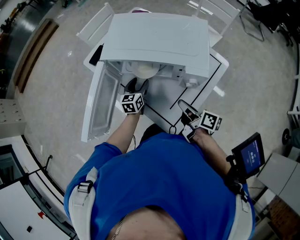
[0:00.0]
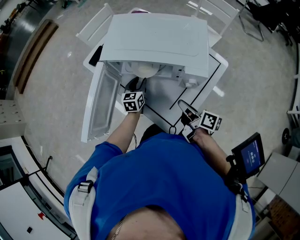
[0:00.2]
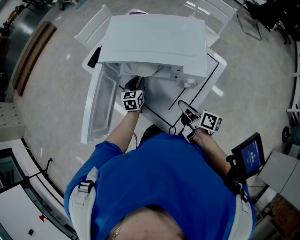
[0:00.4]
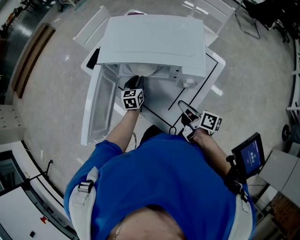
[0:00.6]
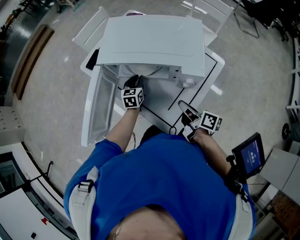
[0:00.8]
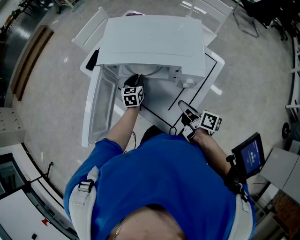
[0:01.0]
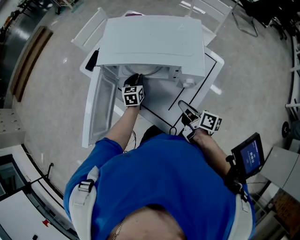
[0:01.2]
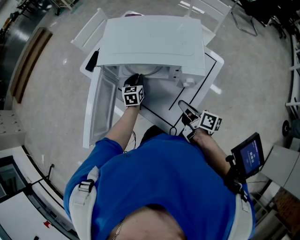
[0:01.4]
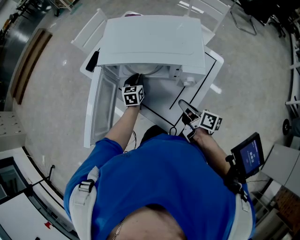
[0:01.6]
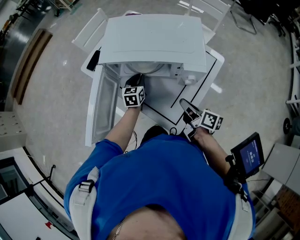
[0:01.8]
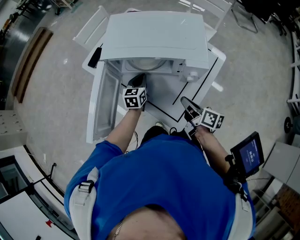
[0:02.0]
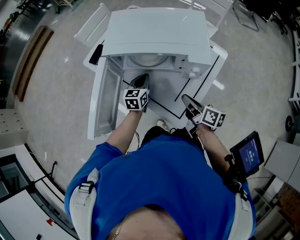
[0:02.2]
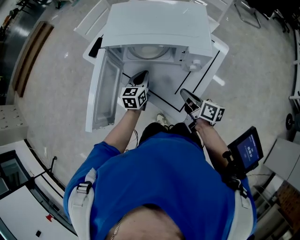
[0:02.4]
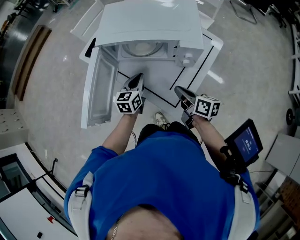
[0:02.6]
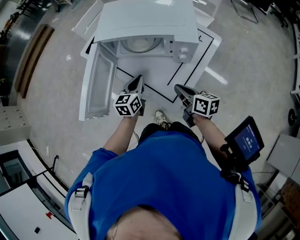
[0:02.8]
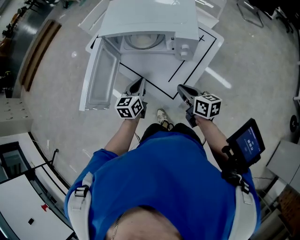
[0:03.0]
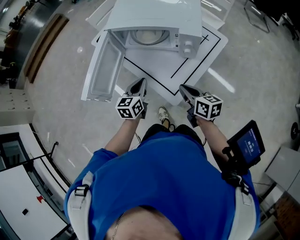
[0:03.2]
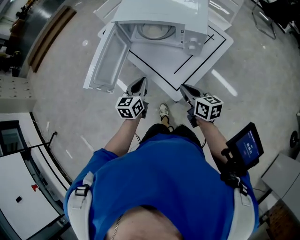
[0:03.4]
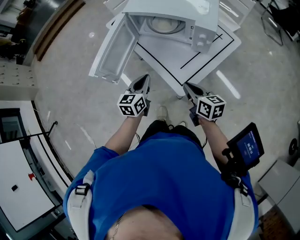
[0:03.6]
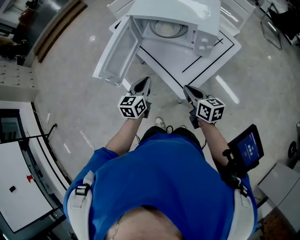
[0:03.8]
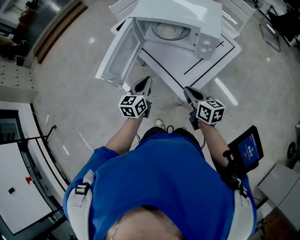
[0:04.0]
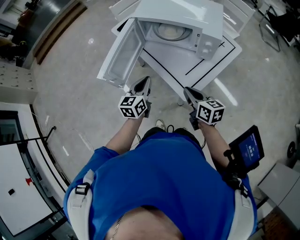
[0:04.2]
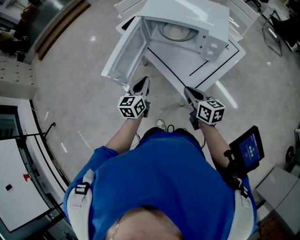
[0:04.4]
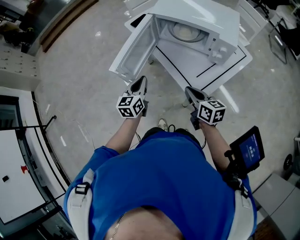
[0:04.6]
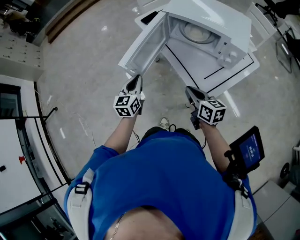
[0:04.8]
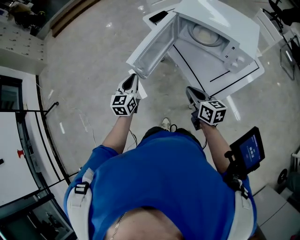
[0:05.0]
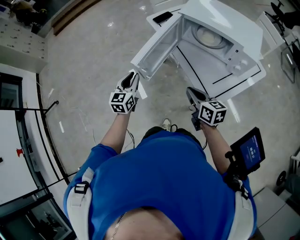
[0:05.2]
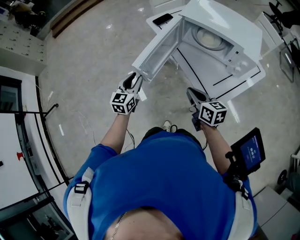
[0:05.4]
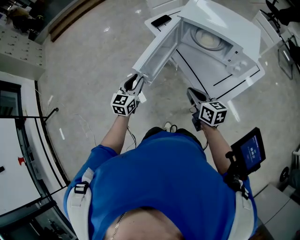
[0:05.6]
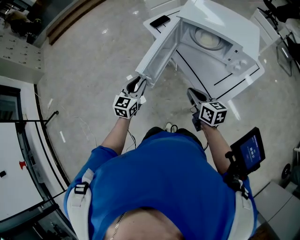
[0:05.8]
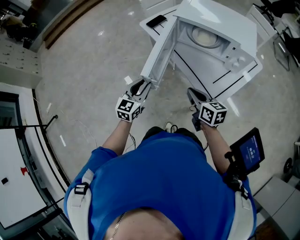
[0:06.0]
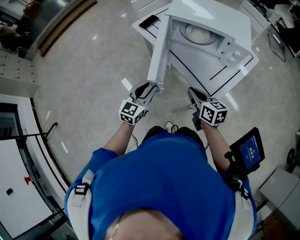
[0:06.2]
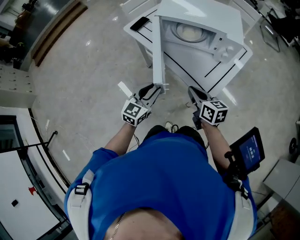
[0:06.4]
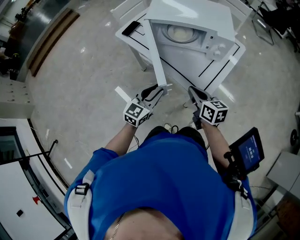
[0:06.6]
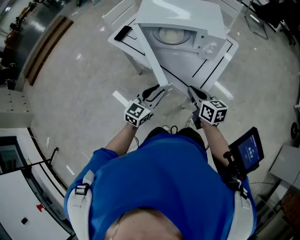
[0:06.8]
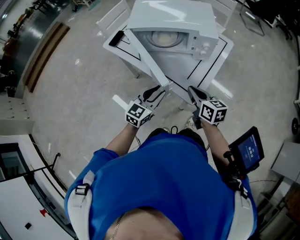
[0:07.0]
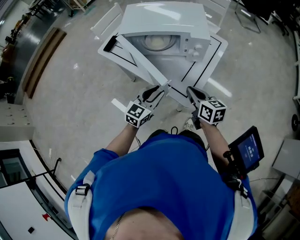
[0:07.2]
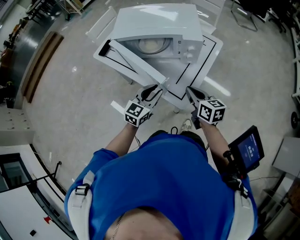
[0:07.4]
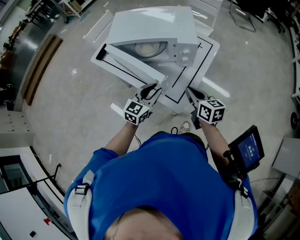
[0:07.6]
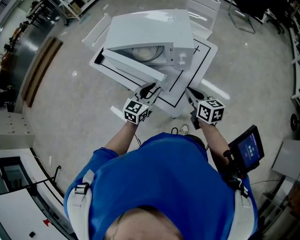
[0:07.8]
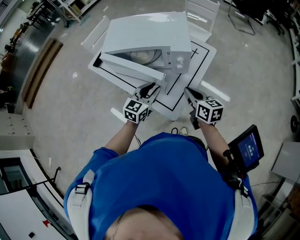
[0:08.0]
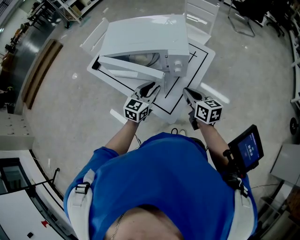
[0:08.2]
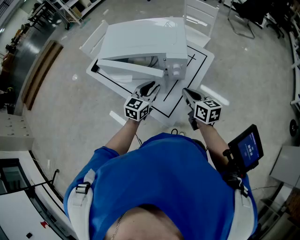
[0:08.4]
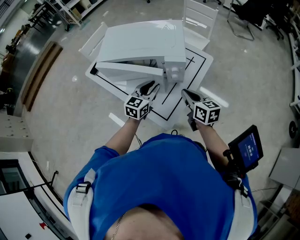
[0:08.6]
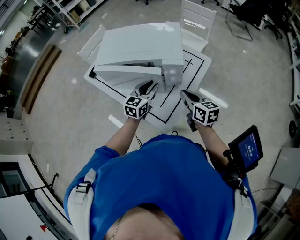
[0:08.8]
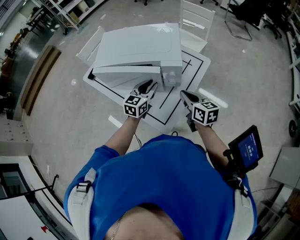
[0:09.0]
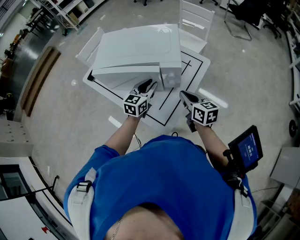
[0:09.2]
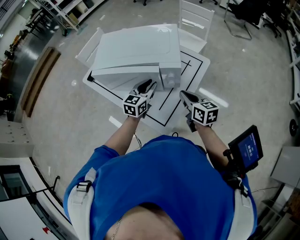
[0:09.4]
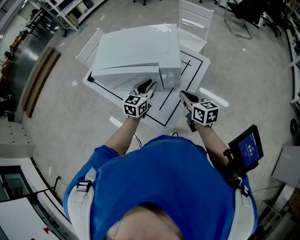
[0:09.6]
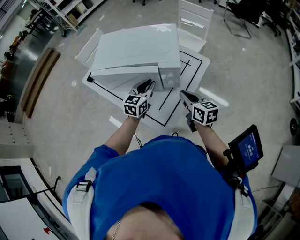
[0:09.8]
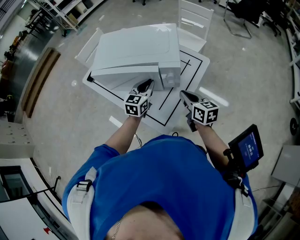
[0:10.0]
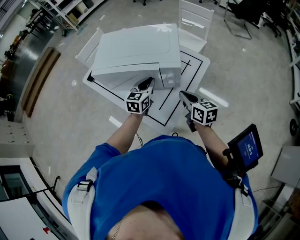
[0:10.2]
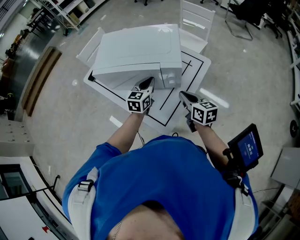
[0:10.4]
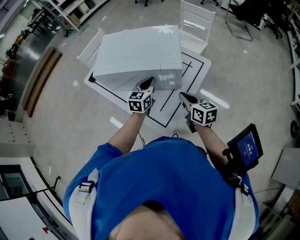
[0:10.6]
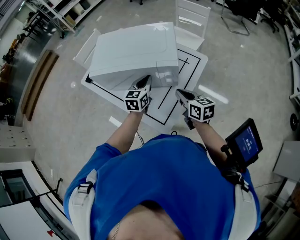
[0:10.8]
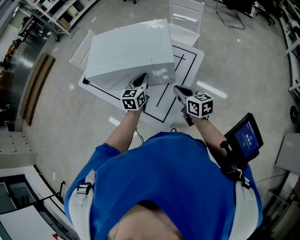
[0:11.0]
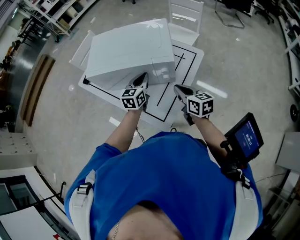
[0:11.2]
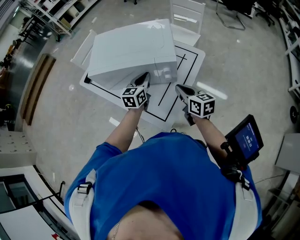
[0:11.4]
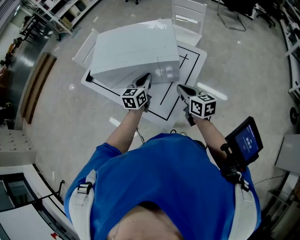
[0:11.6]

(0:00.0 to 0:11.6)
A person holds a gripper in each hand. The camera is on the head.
0:00.0 - 0:01.4: The left gripper closes its fingers.
0:01.4 - 0:02.8: The right gripper moves backward, some 5 cm, and turns by some 20 degrees; the left gripper shifts some 15 cm backward.
0:02.8 - 0:04.4: Both grippers move to the left and backward, some 15 cm.
0:04.4 - 0:05.8: The grippers both shift to the left by some 15 cm. The left gripper opens up.
0:05.8 - 0:07.2: The left gripper ends up roughly 25 cm from where it was, and turns by roughly 40 degrees. The right gripper changes place by approximately 15 cm, and changes its angle by roughly 20 degrees.
0:07.2 - 0:08.8: The two grippers go approximately 15 cm forward and to the right.
0:08.8 - 0:10.2: The left gripper travels forward by about 5 cm.
0:10.2 - 0:11.6: The grippers move only a little.

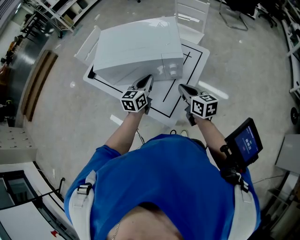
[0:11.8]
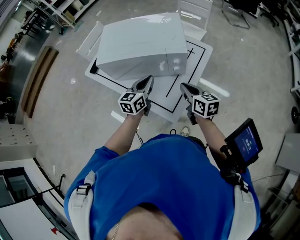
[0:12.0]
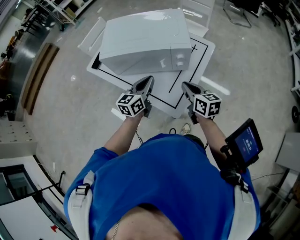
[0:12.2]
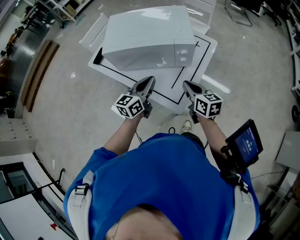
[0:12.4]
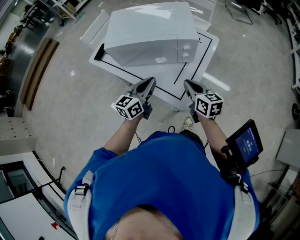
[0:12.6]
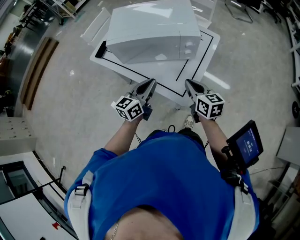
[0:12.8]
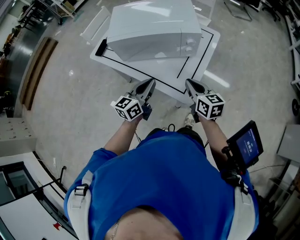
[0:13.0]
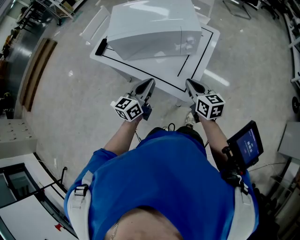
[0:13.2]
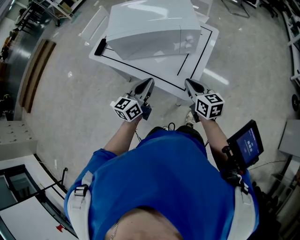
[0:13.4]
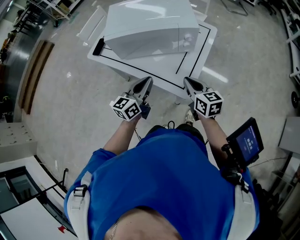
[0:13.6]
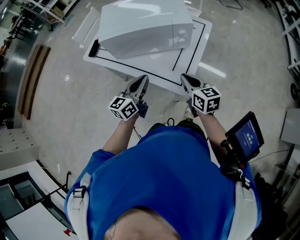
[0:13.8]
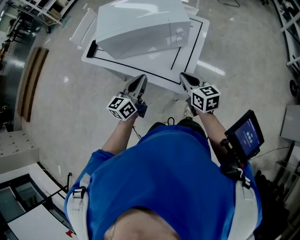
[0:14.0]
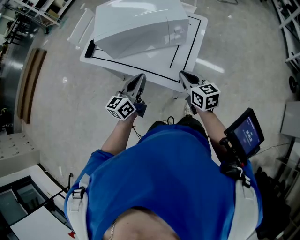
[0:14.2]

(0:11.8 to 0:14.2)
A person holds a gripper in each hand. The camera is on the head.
0:11.8 - 0:13.0: Both grippers travel together backward and to the left, approximately 15 cm.
0:13.0 - 0:14.2: The grippers stay close to where they were, moving slightly.

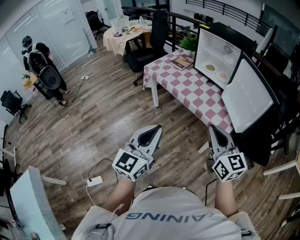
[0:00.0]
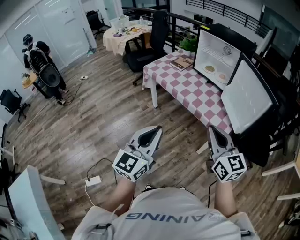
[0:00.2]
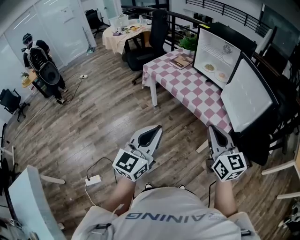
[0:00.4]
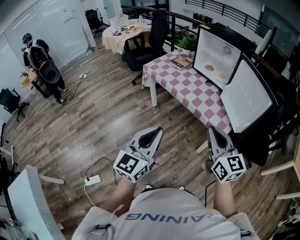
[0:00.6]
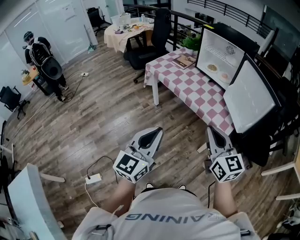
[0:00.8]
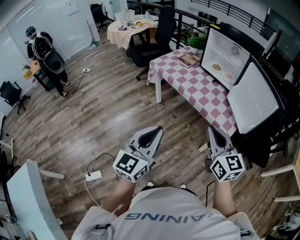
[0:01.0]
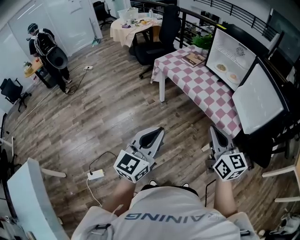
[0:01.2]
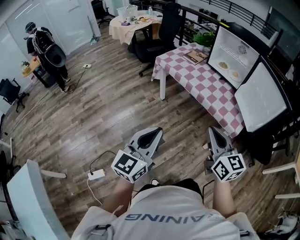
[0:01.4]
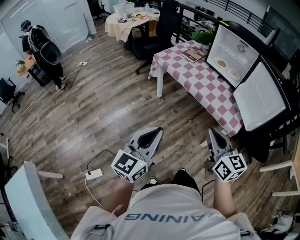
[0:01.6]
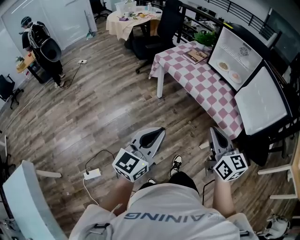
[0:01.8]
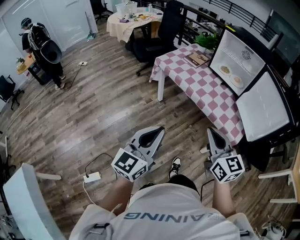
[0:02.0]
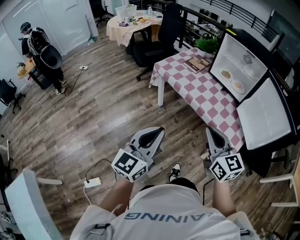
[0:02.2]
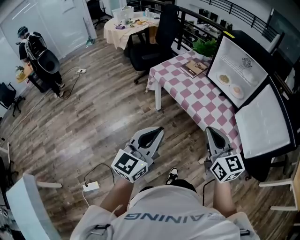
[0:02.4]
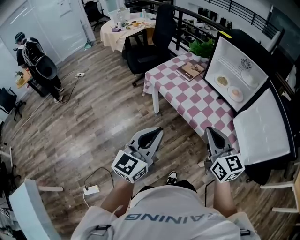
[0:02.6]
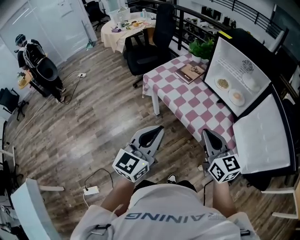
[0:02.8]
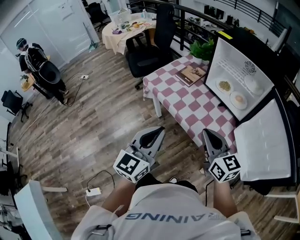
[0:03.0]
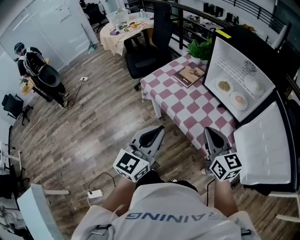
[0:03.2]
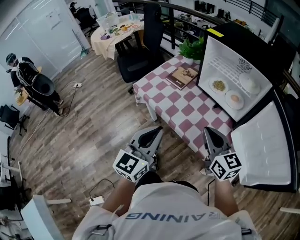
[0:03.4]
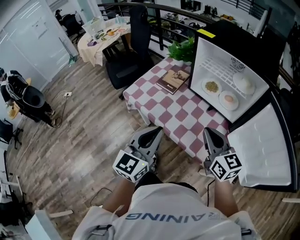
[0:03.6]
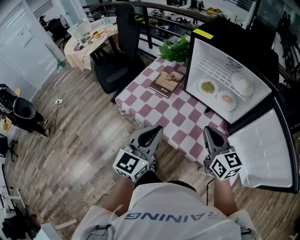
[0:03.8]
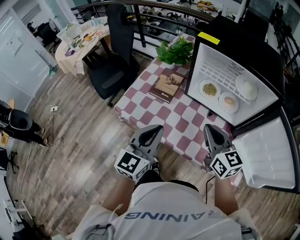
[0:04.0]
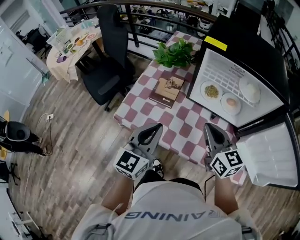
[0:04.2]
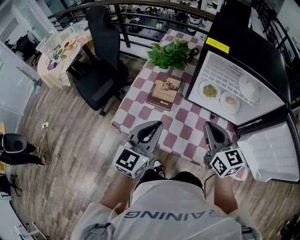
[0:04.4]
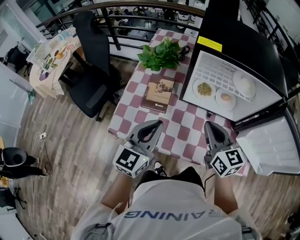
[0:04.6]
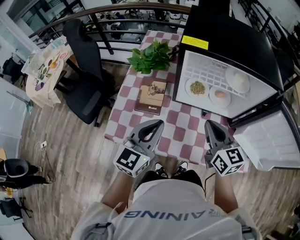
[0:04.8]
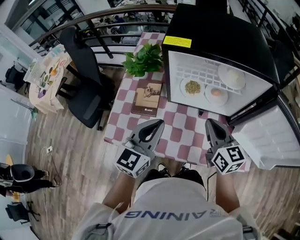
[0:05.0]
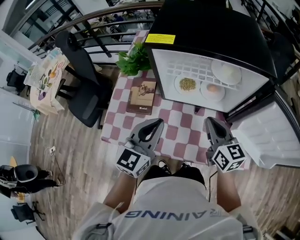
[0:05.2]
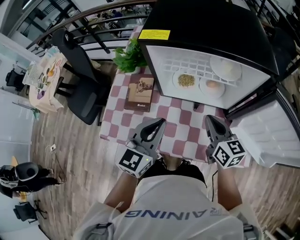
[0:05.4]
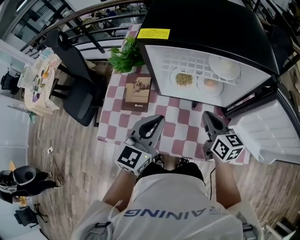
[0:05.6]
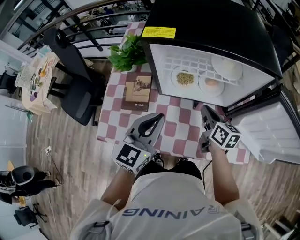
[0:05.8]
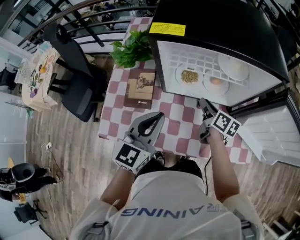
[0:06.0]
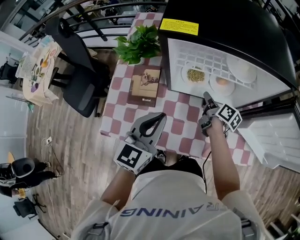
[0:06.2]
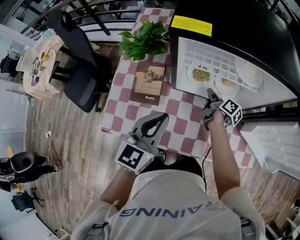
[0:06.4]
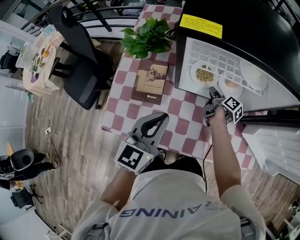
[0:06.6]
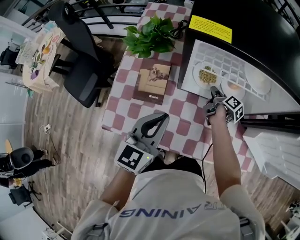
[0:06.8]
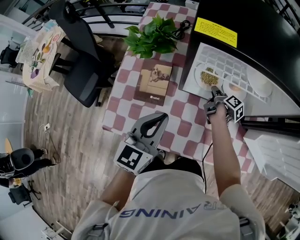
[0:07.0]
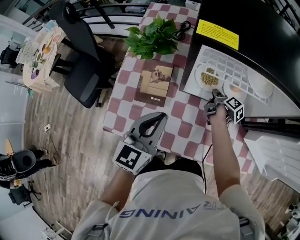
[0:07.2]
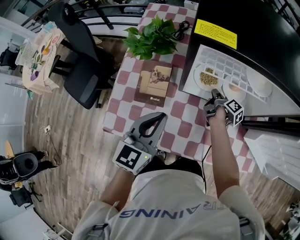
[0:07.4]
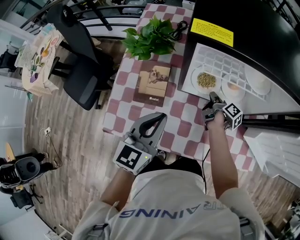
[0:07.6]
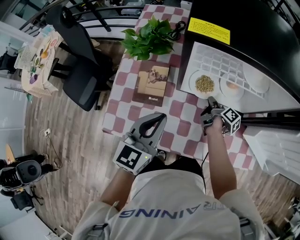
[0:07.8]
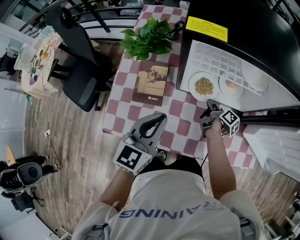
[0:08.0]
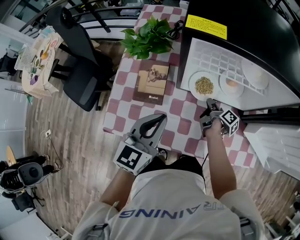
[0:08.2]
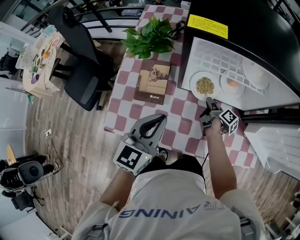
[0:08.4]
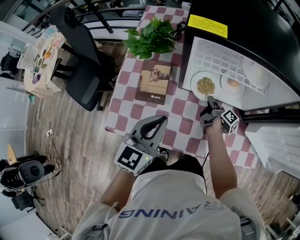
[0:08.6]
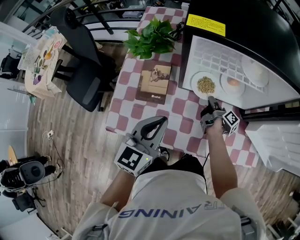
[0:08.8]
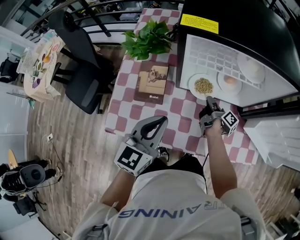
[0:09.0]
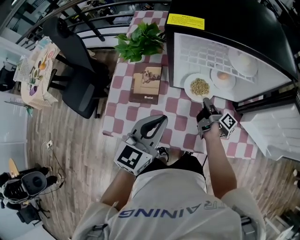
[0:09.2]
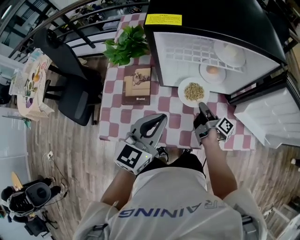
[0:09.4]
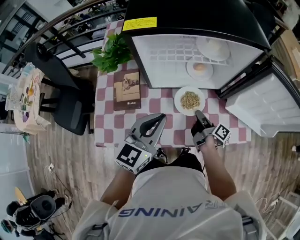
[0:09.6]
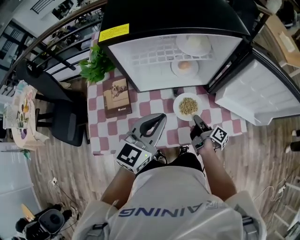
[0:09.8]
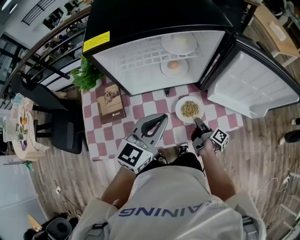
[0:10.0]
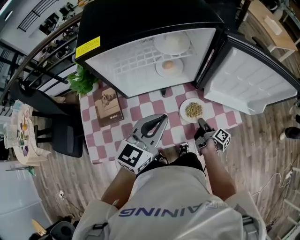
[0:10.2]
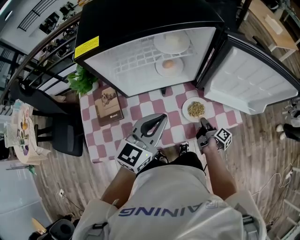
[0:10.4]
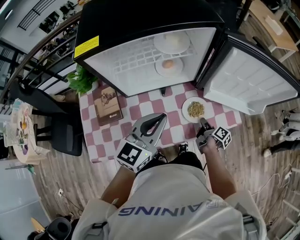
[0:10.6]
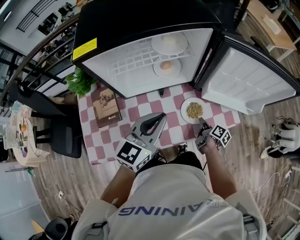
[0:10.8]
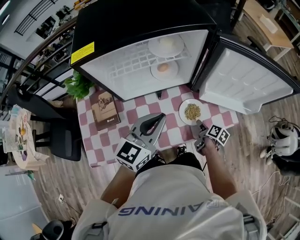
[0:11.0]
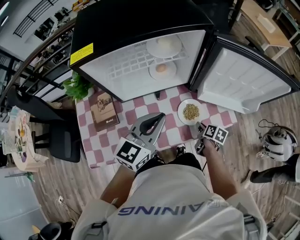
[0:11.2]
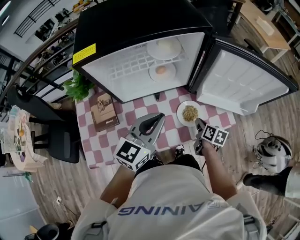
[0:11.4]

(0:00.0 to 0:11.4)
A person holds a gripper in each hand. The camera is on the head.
0:00.0 - 0:01.4: Both grippers move to the left, approximately 10 cm.
0:01.4 - 0:02.8: The two grippers go about 30 cm forward.
0:02.8 - 0:04.2: Both grippers move forward, approximately 30 cm. The left gripper turns by about 20 degrees. Meanwhile the right gripper rotates about 20 degrees.
0:04.2 - 0:05.6: The left gripper shifts some 15 cm to the right and forward. Meanwhile the right gripper goes about 15 cm to the right, downward and forward, and turns by roughly 30 degrees.
0:05.6 - 0:07.2: The right gripper goes roughly 25 cm downward and forward, and rotates around the line of its fingers by about 60 degrees, clockwise from behind, while the left gripper is displaced to the left by approximately 10 cm.
0:07.2 - 0:08.6: The right gripper goes some 5 cm backward.
0:08.6 - 0:10.0: The right gripper moves backward and to the right, roughly 25 cm. The left gripper is displaced to the right by approximately 15 cm, and rotates some 30 degrees.
0:10.0 - 0:11.4: The right gripper turns by approximately 40 degrees, and opens, then closes again.
